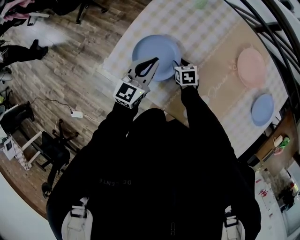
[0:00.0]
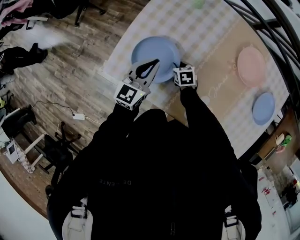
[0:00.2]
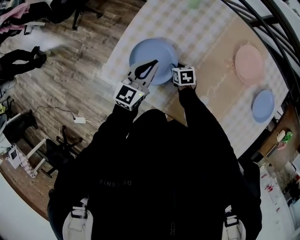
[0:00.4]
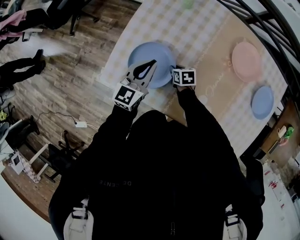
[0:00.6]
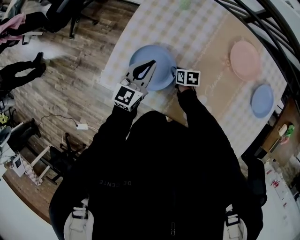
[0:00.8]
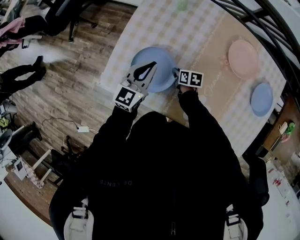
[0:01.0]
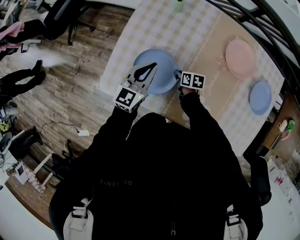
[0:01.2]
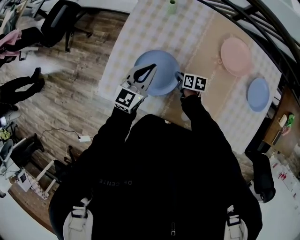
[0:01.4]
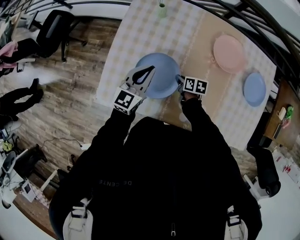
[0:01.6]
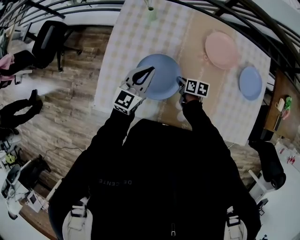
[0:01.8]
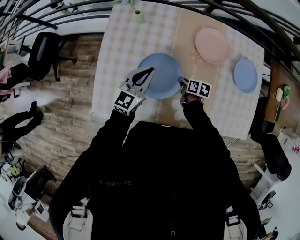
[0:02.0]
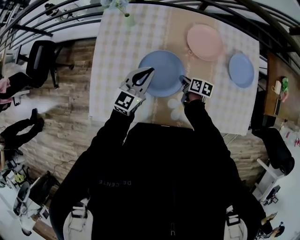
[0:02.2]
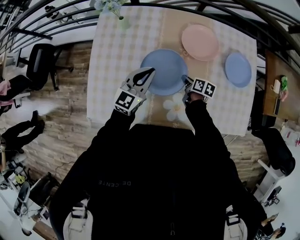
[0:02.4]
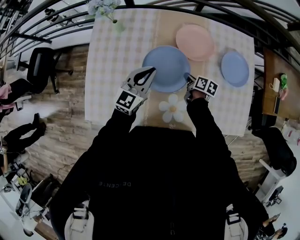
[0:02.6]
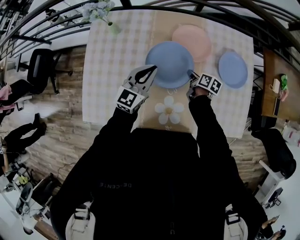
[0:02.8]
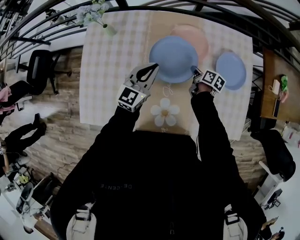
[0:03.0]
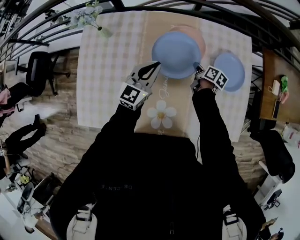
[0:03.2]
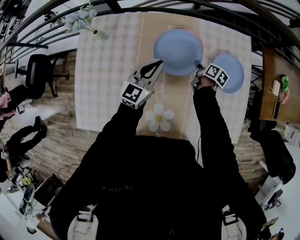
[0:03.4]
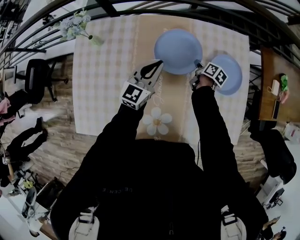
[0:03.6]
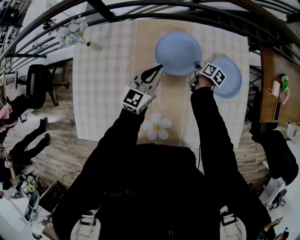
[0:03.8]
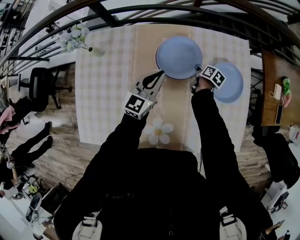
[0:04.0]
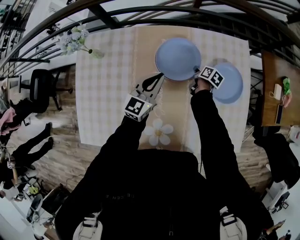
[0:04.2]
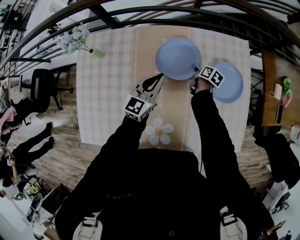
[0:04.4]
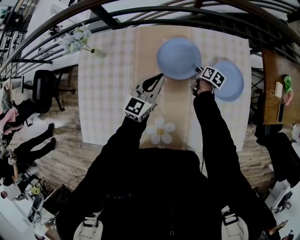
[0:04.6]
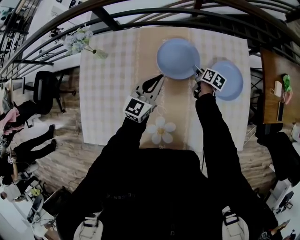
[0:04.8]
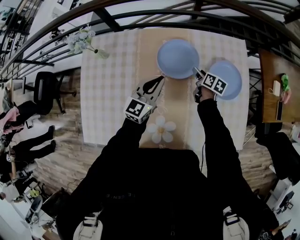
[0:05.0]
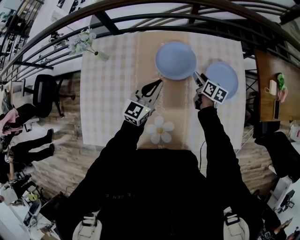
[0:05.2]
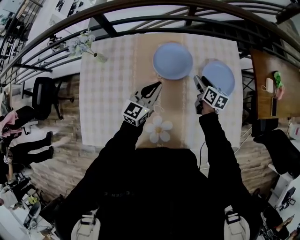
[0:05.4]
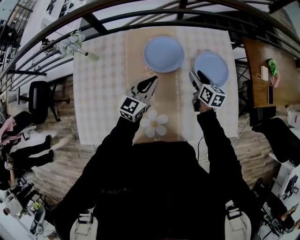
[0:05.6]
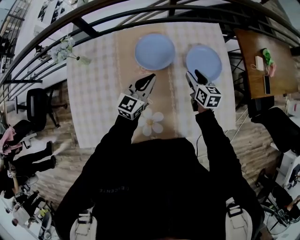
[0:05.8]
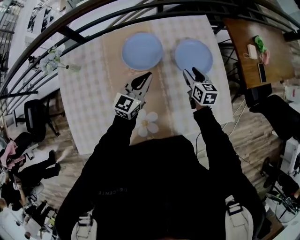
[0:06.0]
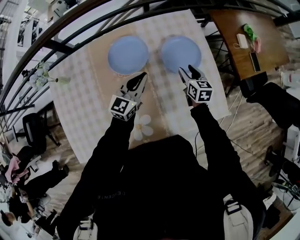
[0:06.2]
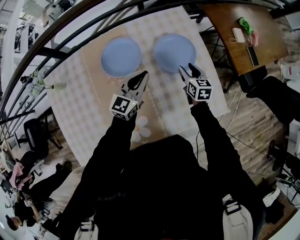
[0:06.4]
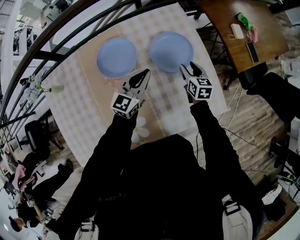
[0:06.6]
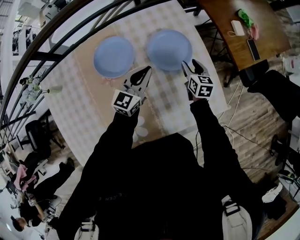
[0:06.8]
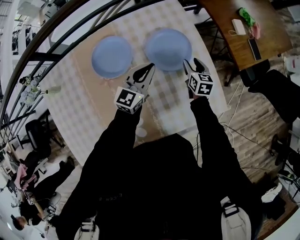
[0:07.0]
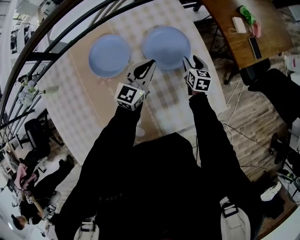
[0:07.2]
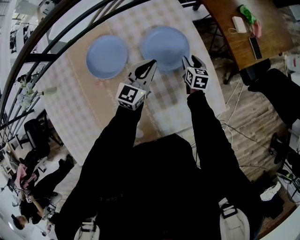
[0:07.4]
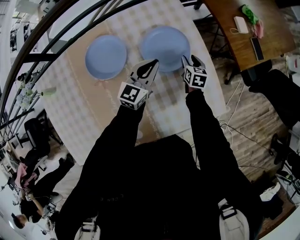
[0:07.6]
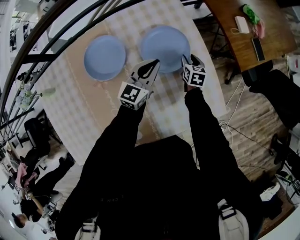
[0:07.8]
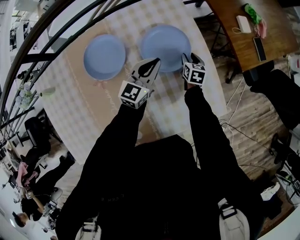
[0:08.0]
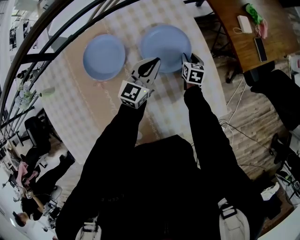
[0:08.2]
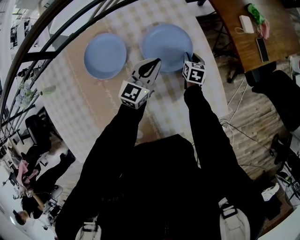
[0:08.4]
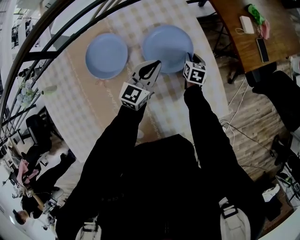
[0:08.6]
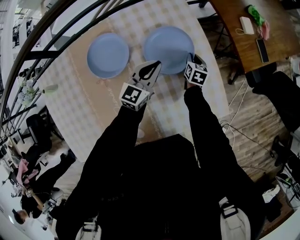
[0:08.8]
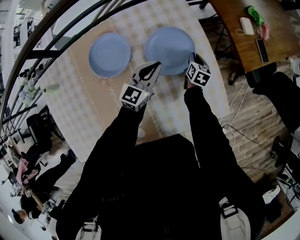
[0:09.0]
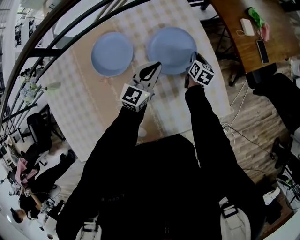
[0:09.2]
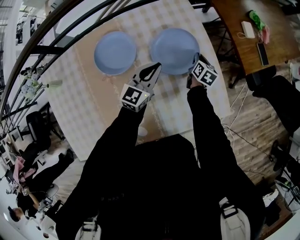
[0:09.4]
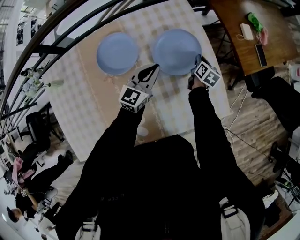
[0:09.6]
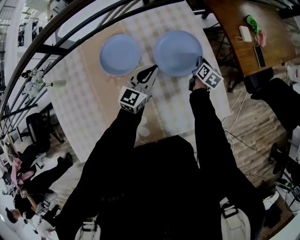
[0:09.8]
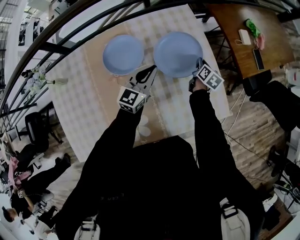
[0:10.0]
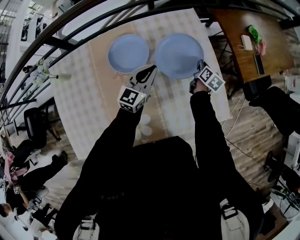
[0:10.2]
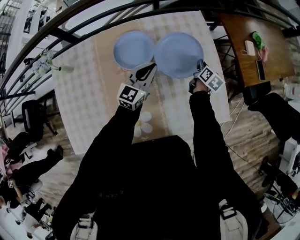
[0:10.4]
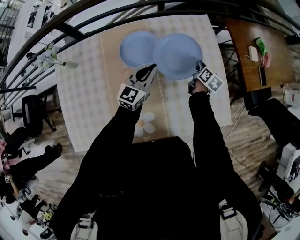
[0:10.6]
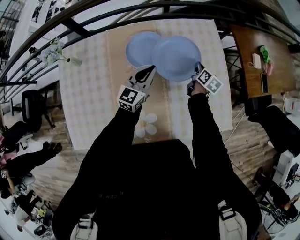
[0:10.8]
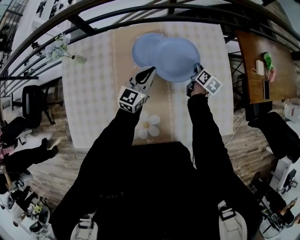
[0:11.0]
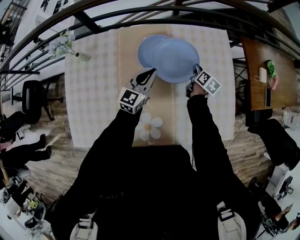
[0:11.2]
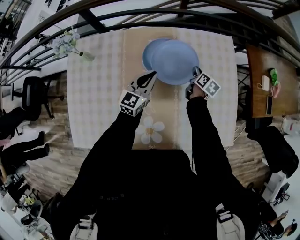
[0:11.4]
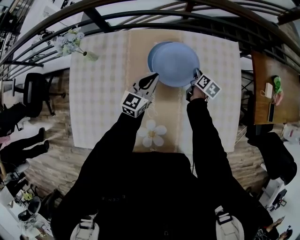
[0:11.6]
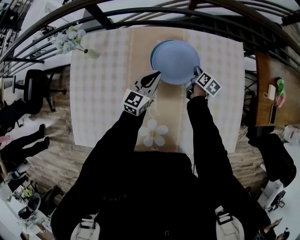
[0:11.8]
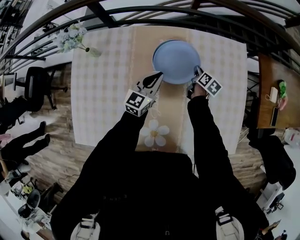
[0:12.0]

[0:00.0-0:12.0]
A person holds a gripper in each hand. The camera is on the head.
0:00.0 to 0:01.6: Both grippers move to the right, roughly 10 cm. The right gripper swivels about 40 degrees, and closes.
0:01.6 to 0:03.0: Both grippers travel together to the right, some 25 cm. The right gripper swivels some 30 degrees.
0:03.0 to 0:04.4: The right gripper shifts about 15 cm forward, to the right and downward, and opens its fingers, while the left gripper heads forward and to the right, covering roughly 10 cm.
0:04.4 to 0:06.0: The left gripper travels to the right and backward by roughly 10 cm, while the right gripper travels upward, backward and to the right by roughly 25 cm, and changes its angle by approximately 30 degrees.
0:06.0 to 0:07.6: The left gripper shifts roughly 20 cm to the right, forward and downward; the right gripper moves to the right, downward and forward, approximately 25 cm, and changes its angle by some 20 degrees.
0:07.6 to 0:09.0: The right gripper closes up.
0:09.0 to 0:10.4: The right gripper shifts approximately 10 cm upward and to the left, while the left gripper moves to the left, backward and upward, roughly 15 cm.
0:10.4 to 0:12.0: The grippers both shift to the left by approximately 20 cm.

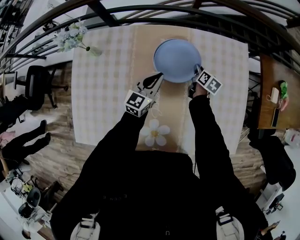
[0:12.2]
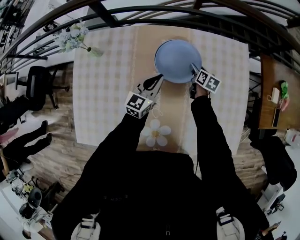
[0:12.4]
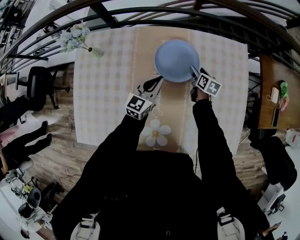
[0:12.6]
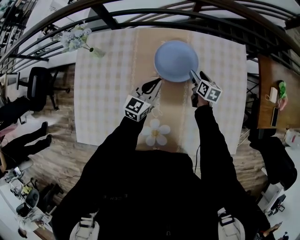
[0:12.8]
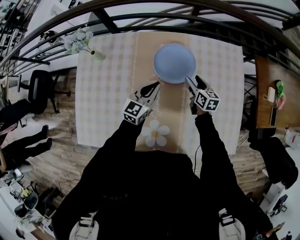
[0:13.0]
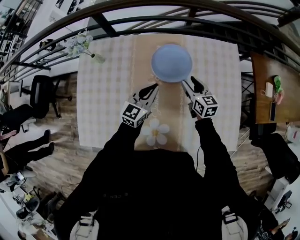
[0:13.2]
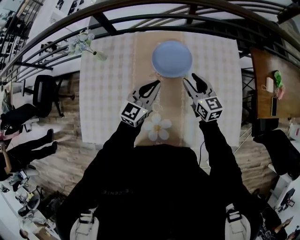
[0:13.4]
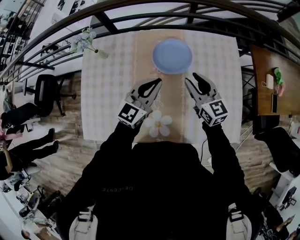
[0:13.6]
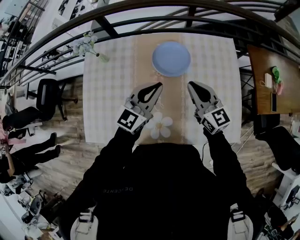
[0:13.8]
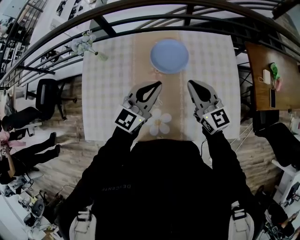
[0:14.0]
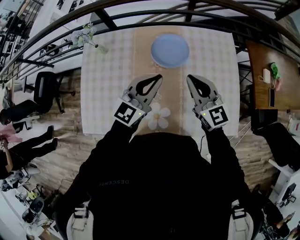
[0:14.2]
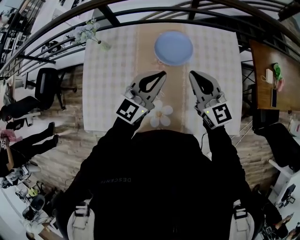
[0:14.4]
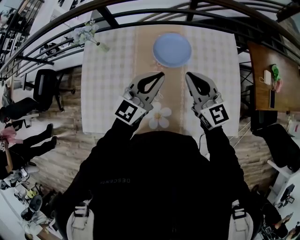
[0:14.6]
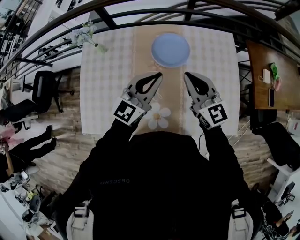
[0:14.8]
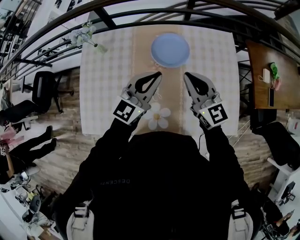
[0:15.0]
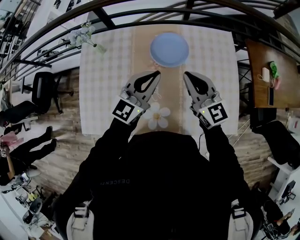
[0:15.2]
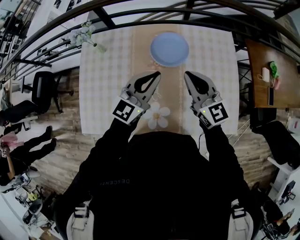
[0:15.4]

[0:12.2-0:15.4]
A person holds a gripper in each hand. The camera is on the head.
0:12.2 to 0:13.8: The left gripper shifts about 25 cm upward and backward. Meanwhile the right gripper is displaced upward and backward by roughly 35 cm, tips its fingers upward by some 30 degrees, and opens, then closes again.
0:13.8 to 0:15.4: The right gripper shifts by about 5 cm.

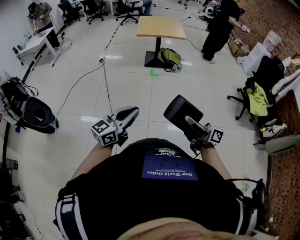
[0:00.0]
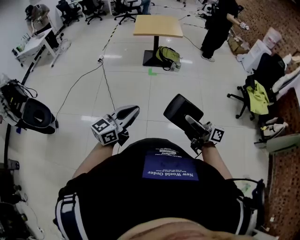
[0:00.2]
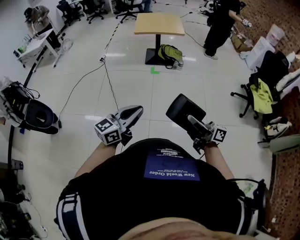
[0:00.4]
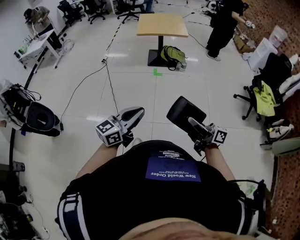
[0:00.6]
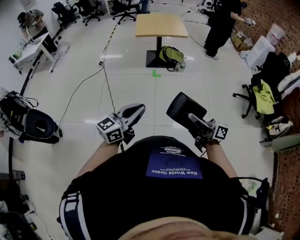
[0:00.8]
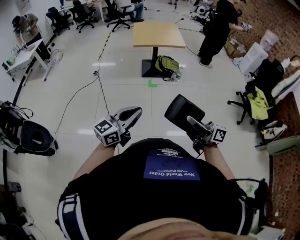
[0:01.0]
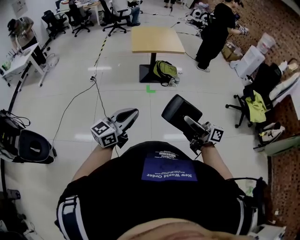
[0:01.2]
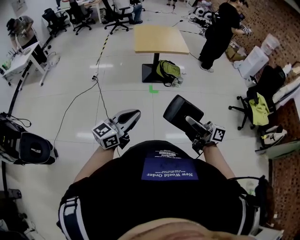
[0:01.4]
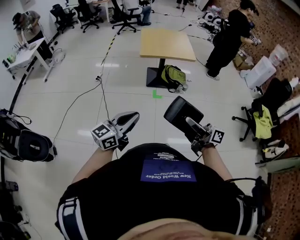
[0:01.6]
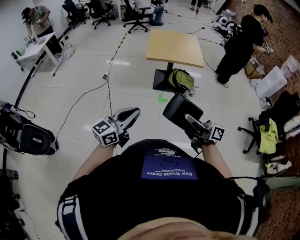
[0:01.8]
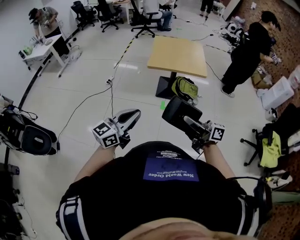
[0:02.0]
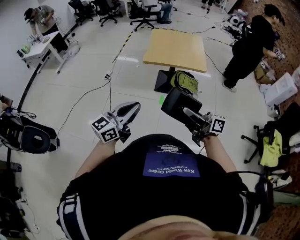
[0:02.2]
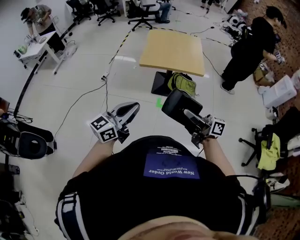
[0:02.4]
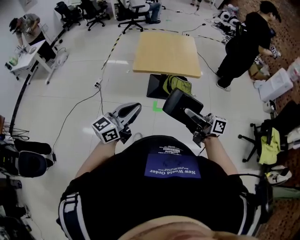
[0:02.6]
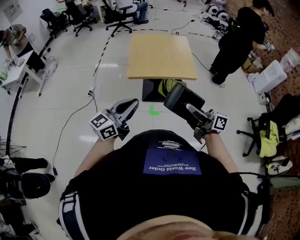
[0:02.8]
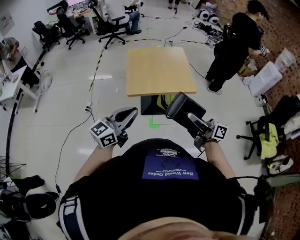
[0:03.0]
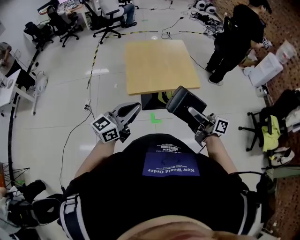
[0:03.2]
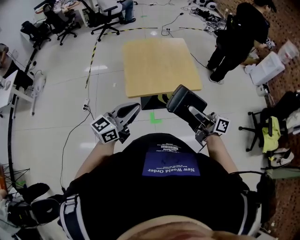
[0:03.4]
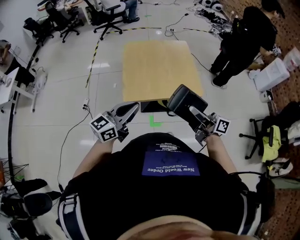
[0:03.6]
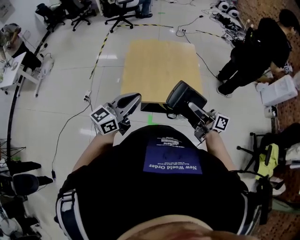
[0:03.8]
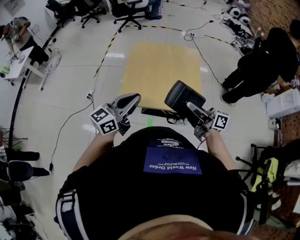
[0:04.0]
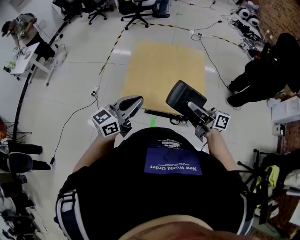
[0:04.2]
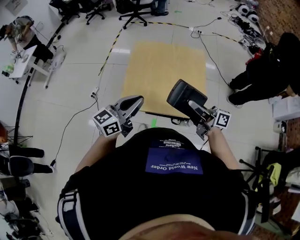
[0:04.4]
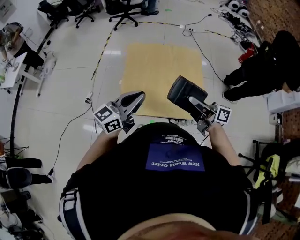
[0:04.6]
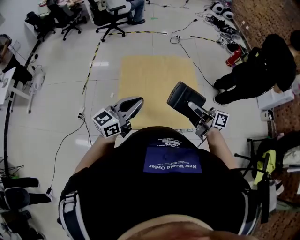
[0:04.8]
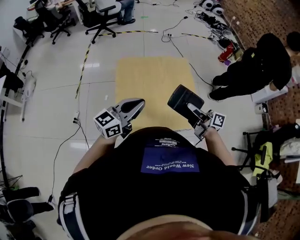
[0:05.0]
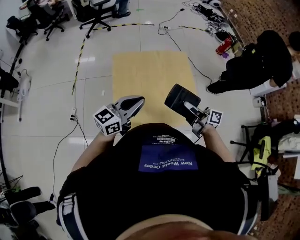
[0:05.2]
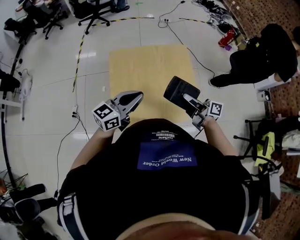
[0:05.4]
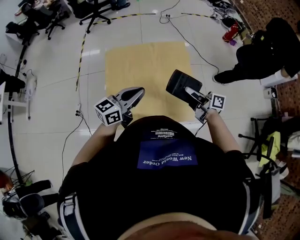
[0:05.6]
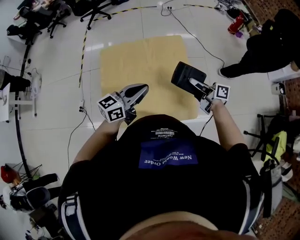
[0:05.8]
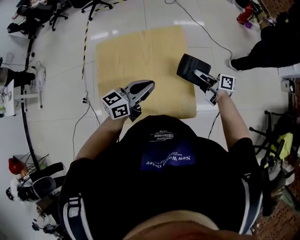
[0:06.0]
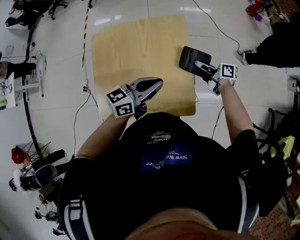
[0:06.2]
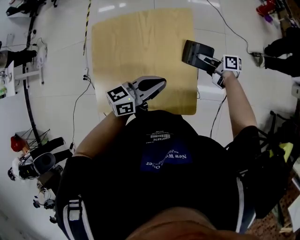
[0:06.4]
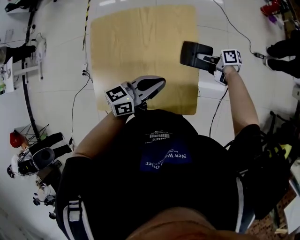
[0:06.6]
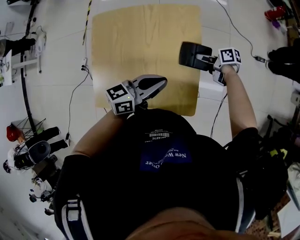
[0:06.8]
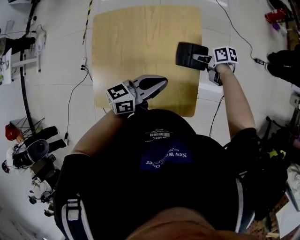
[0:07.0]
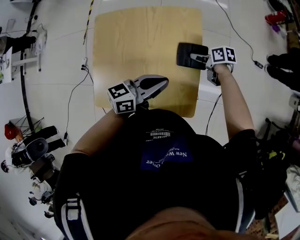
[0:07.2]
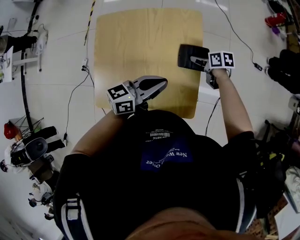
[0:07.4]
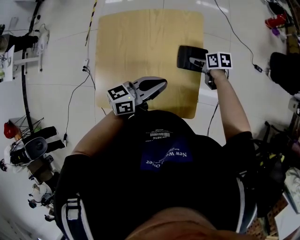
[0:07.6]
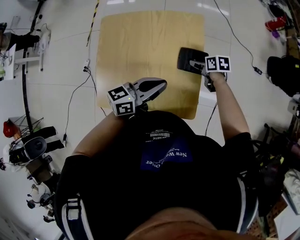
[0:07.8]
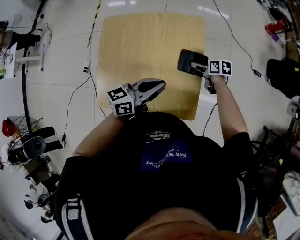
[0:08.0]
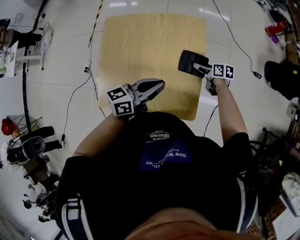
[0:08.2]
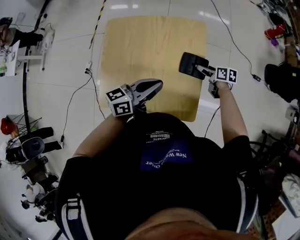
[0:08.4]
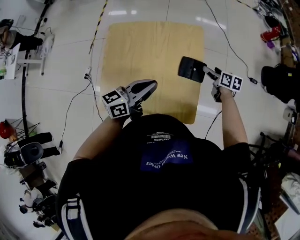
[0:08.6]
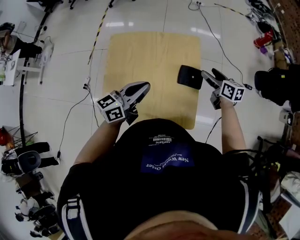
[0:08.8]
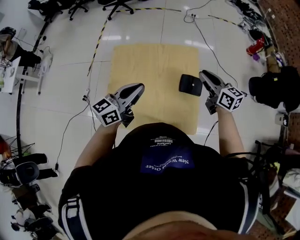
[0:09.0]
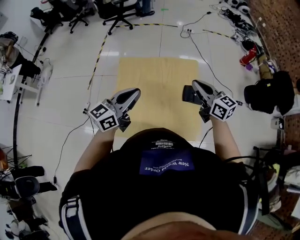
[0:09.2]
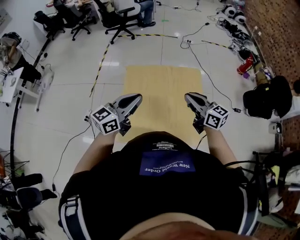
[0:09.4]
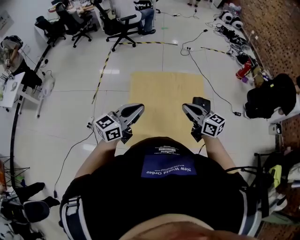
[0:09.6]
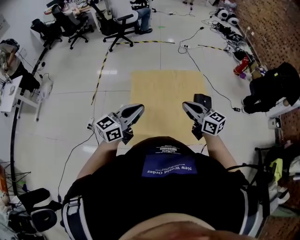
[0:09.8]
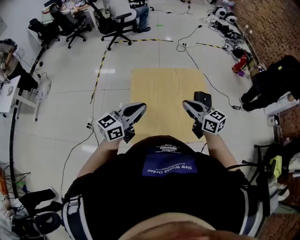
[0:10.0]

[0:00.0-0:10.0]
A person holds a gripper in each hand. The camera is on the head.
0:00.0 to 0:01.4: The right gripper goes some 30 cm forward and to the left; the left gripper travels forward by some 30 cm.
0:01.4 to 0:02.8: The pair of grippers is taken forward, some 50 cm.
0:02.8 to 0:04.2: The two grippers go some 35 cm forward.
0:04.2 to 0:05.8: The left gripper travels forward by approximately 25 cm, and turns by about 20 degrees, while the right gripper goes some 30 cm forward, downward and to the right, and changes its angle by some 20 degrees.
0:05.8 to 0:07.2: The right gripper moves downward, roughly 20 cm, tilts its fingers some 40 degrees downward, and opens up; the left gripper changes place by some 15 cm.
0:07.2 to 0:08.6: The left gripper shifts by roughly 10 cm; the right gripper changes place by about 5 cm, and turns by roughly 30 degrees.
0:08.6 to 0:10.0: The right gripper is displaced to the left, upward and backward by roughly 50 cm, rotates approximately 40 degrees, and closes. Meanwhile the left gripper travels to the left and upward by roughly 30 cm, and changes its angle by about 20 degrees.
